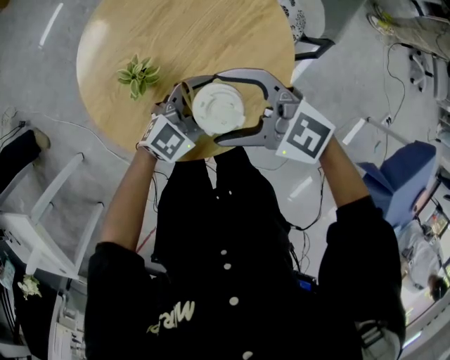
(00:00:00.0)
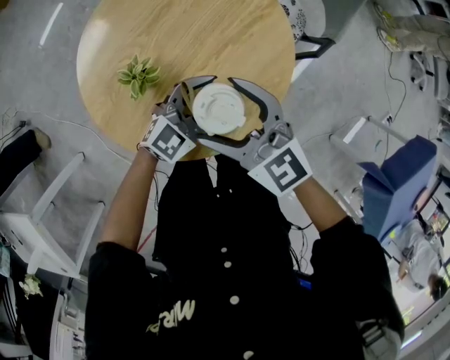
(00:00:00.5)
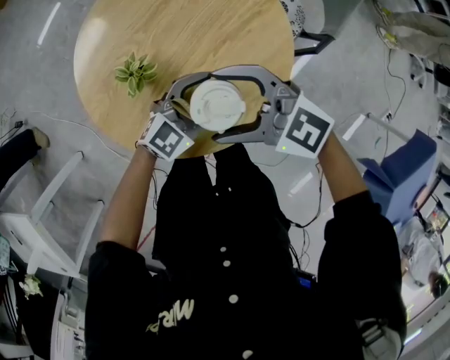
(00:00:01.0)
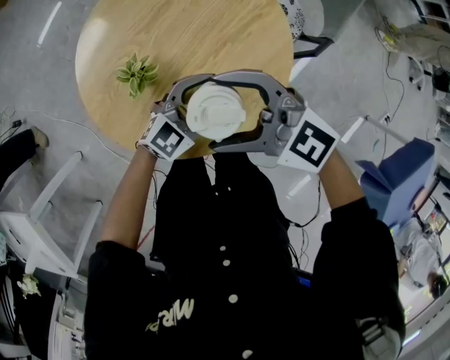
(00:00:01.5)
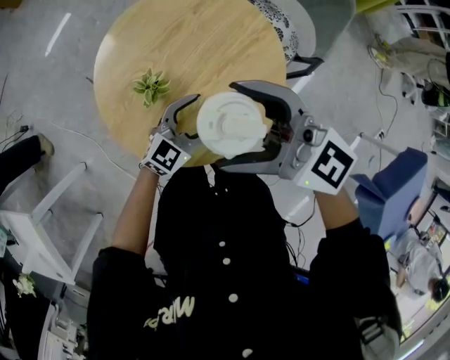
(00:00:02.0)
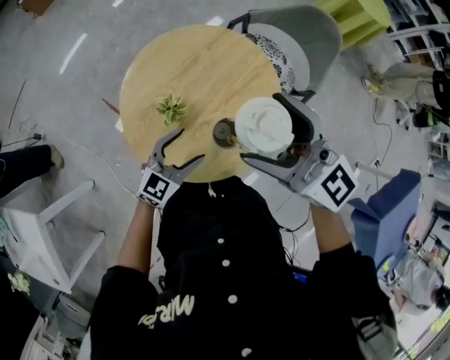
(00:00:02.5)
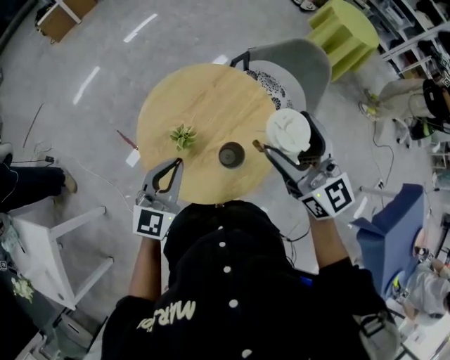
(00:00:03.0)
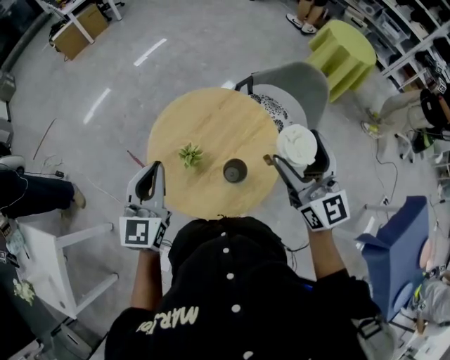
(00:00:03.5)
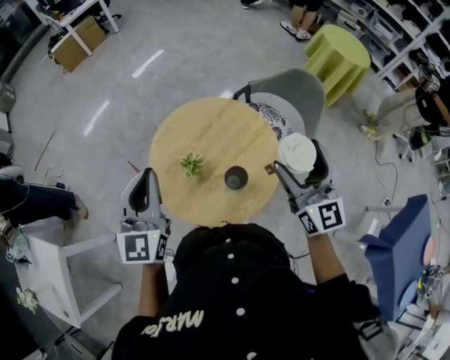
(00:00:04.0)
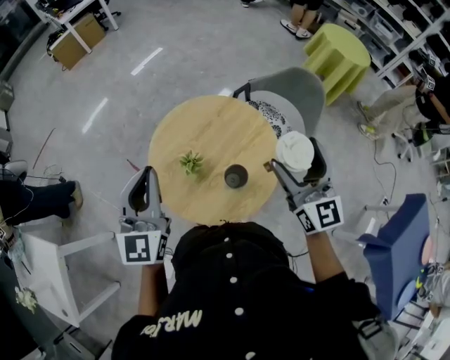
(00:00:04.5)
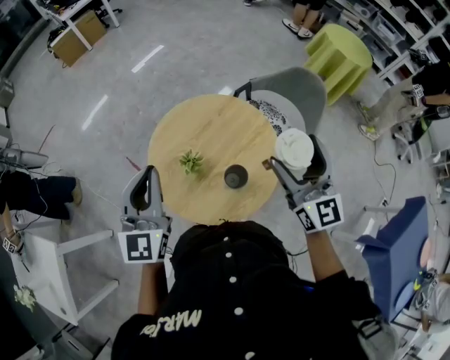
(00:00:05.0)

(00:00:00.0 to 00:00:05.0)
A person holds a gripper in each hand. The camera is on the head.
00:00:00.0 - 00:00:02.5: The left gripper ends up some 15 cm from where it was, and rotates some 20 degrees; the right gripper travels upward by roughly 20 cm, and changes its angle by roughly 30 degrees.
00:00:02.5 - 00:00:05.0: The left gripper shifts approximately 30 cm upward and to the left, rotates approximately 40 degrees, and closes up. Meanwhile the right gripper travels to the right by some 10 cm, and swivels some 30 degrees.

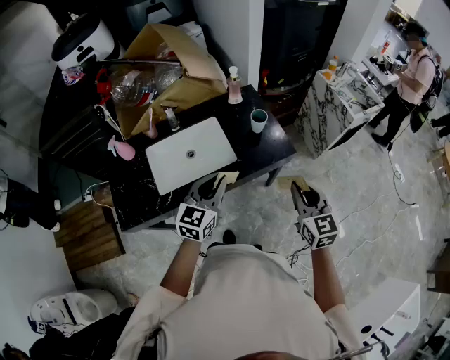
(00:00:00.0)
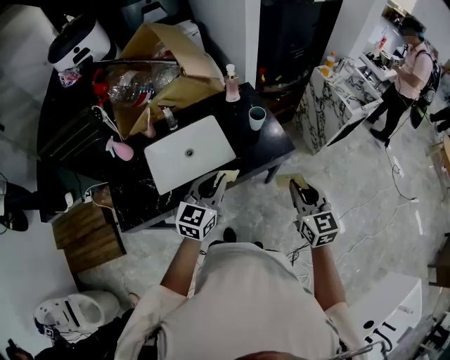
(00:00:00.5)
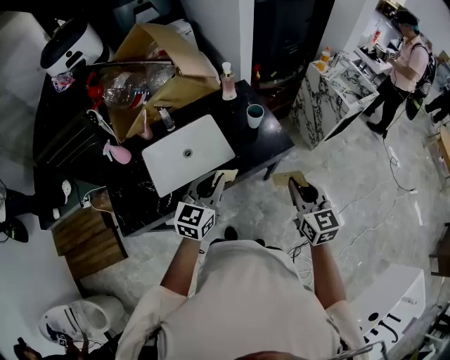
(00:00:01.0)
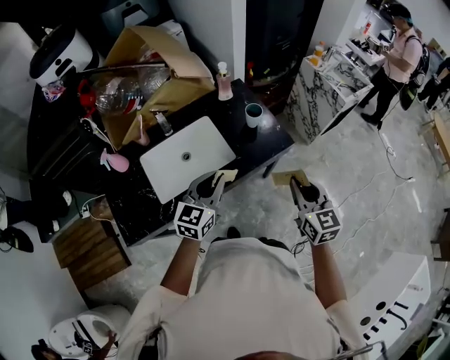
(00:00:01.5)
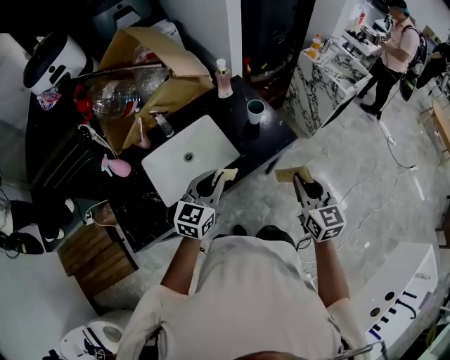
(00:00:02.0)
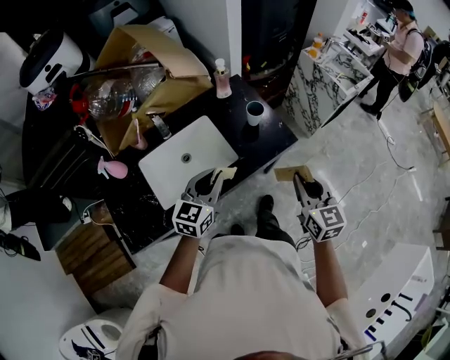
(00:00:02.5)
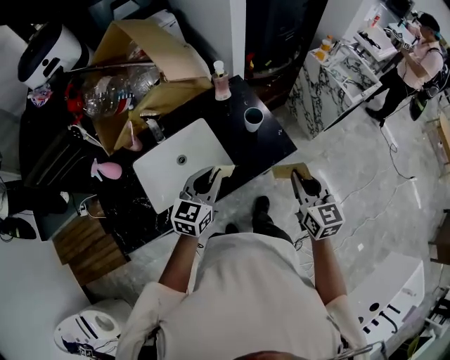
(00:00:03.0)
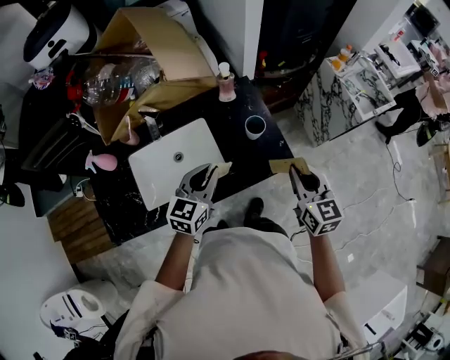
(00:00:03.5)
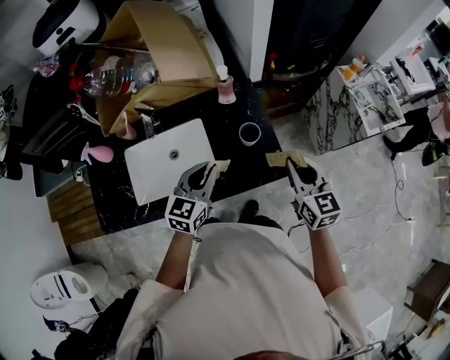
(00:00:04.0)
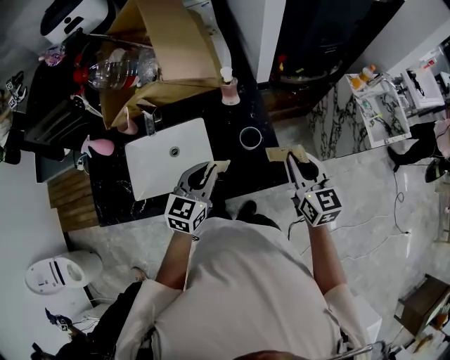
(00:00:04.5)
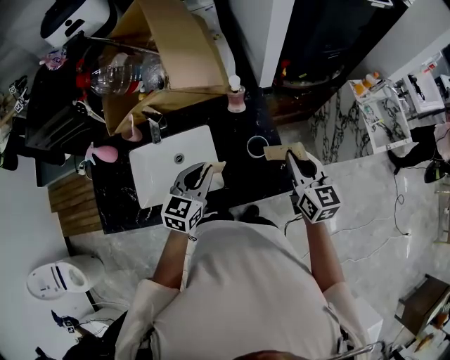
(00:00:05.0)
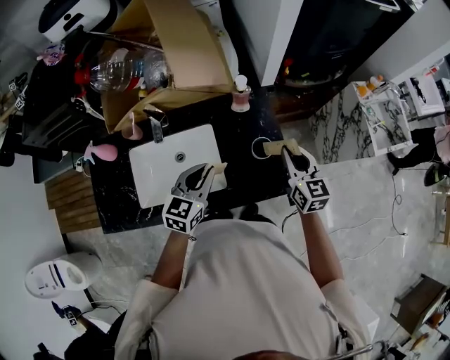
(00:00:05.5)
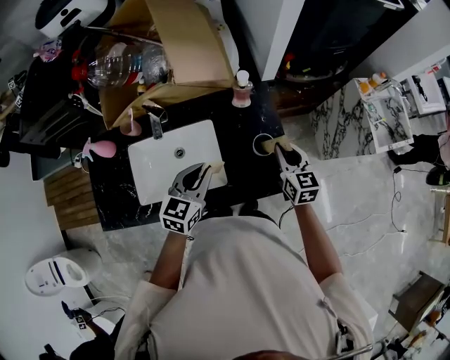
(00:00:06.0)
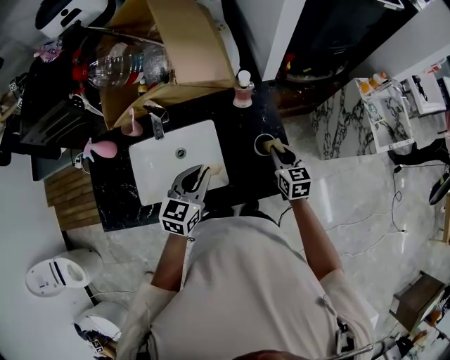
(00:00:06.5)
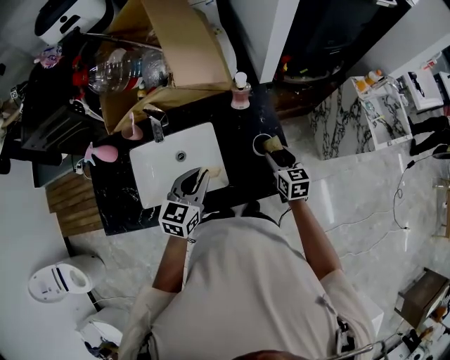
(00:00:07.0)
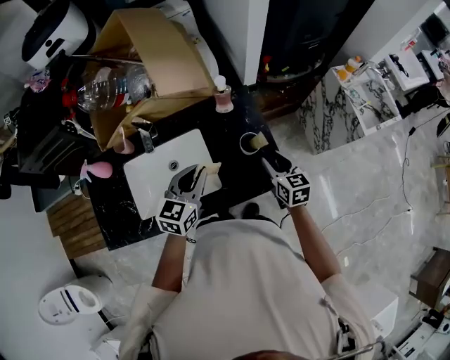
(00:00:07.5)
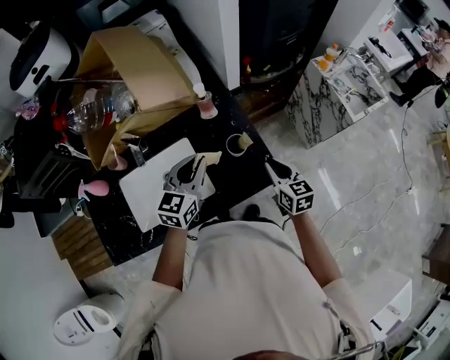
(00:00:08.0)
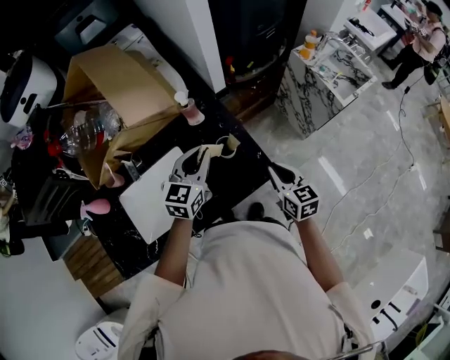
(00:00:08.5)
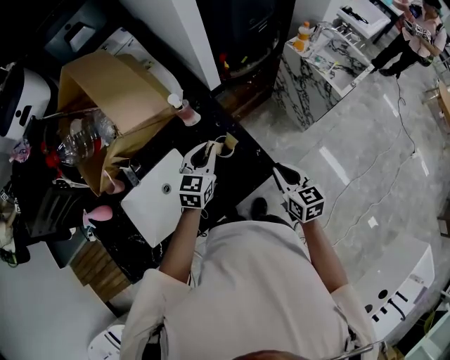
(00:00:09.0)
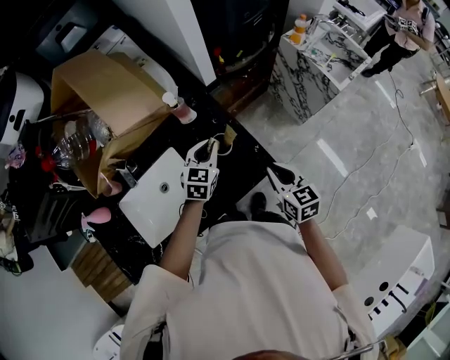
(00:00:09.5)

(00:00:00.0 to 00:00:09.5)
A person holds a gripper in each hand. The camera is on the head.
00:00:00.0 - 00:00:02.0: The left gripper is displaced to the left by roughly 5 cm.
00:00:02.0 - 00:00:04.0: The right gripper is displaced forward by some 25 cm. The left gripper heads forward and to the right, covering roughly 20 cm.
00:00:04.0 - 00:00:05.5: The left gripper shifts roughly 5 cm forward, while the right gripper is displaced forward by approximately 10 cm.
00:00:05.5 - 00:00:07.5: The right gripper travels downward by about 10 cm, and opens its fingers.
00:00:07.5 - 00:00:09.5: The right gripper travels to the right and backward by some 10 cm, and closes up. The left gripper shifts some 20 cm to the right, forward and downward.

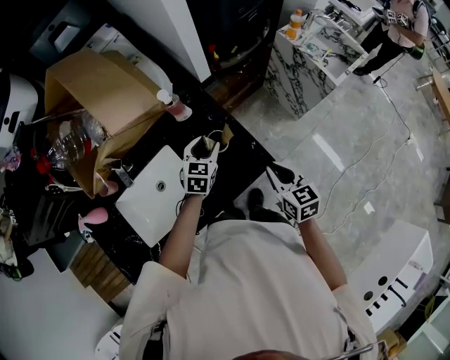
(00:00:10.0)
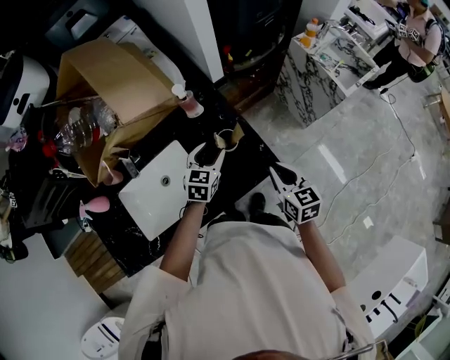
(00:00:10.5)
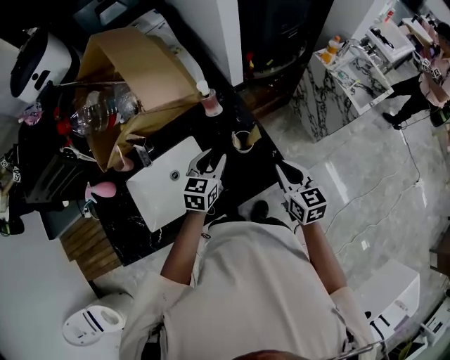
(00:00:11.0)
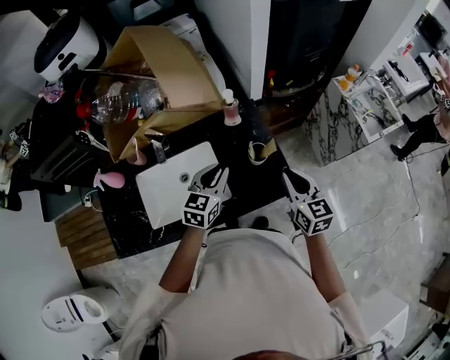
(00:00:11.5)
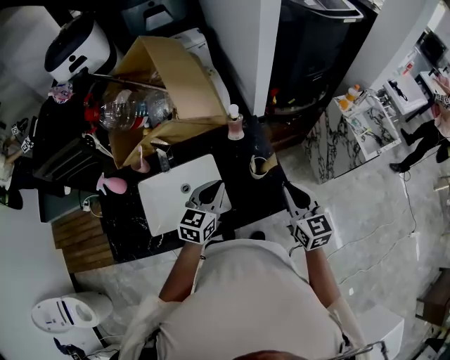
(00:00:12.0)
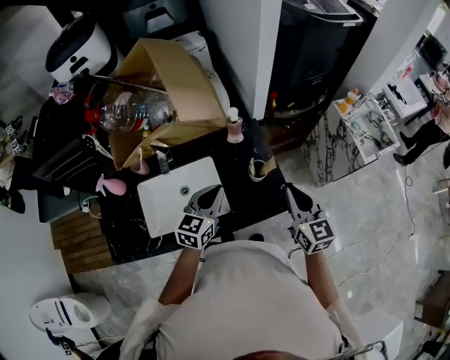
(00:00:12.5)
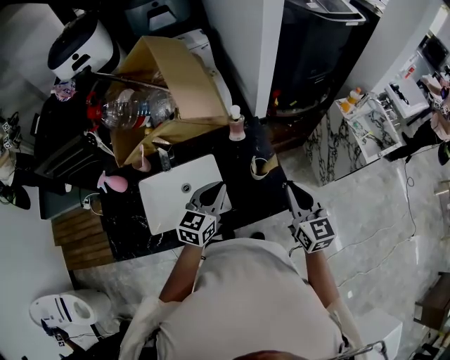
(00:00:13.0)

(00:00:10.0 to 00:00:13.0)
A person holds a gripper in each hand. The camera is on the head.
00:00:10.0 - 00:00:11.5: The left gripper heads upward, to the left and backward, covering about 20 cm, and closes up, while the right gripper goes approximately 10 cm upward and to the left.
00:00:11.5 - 00:00:13.0: The right gripper moves upward, roughly 5 cm.

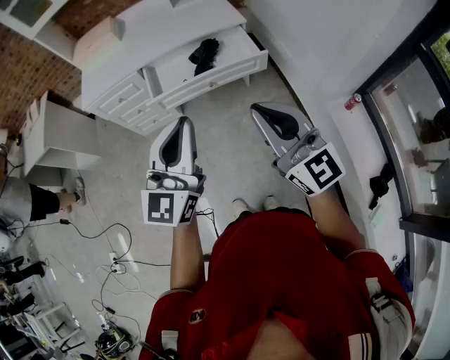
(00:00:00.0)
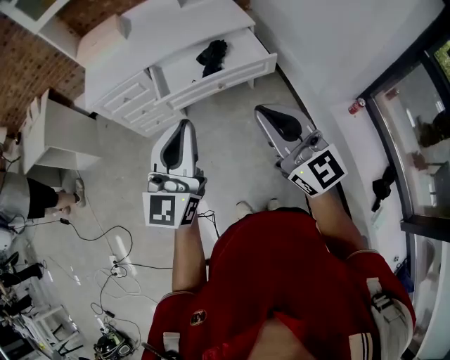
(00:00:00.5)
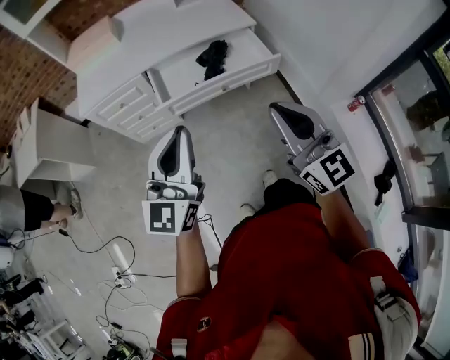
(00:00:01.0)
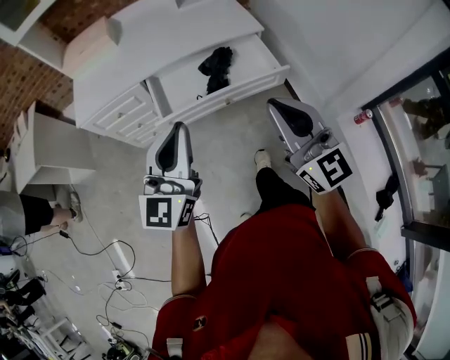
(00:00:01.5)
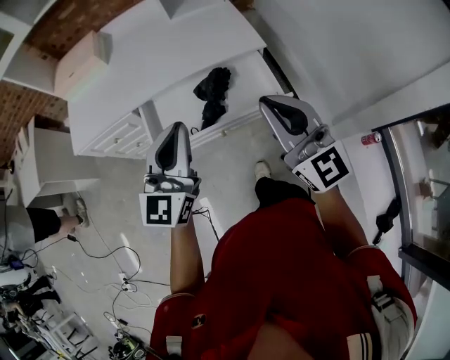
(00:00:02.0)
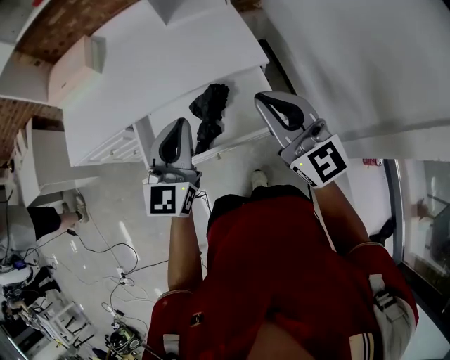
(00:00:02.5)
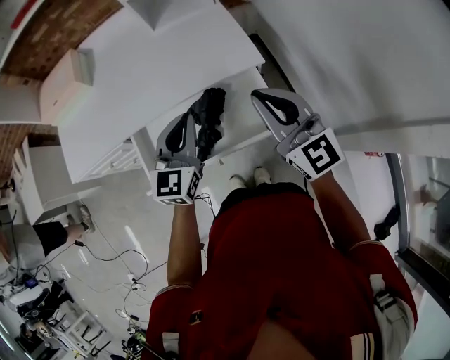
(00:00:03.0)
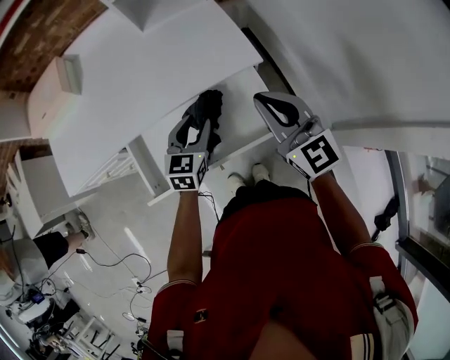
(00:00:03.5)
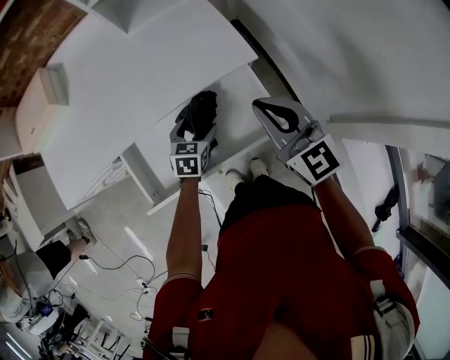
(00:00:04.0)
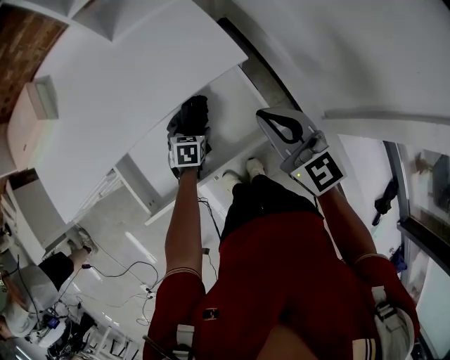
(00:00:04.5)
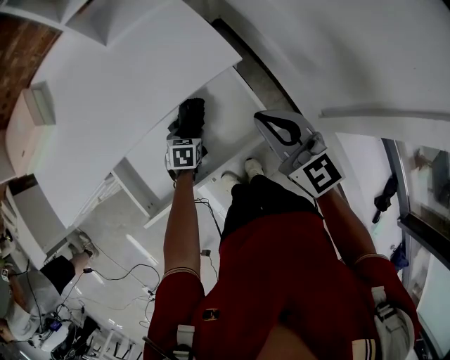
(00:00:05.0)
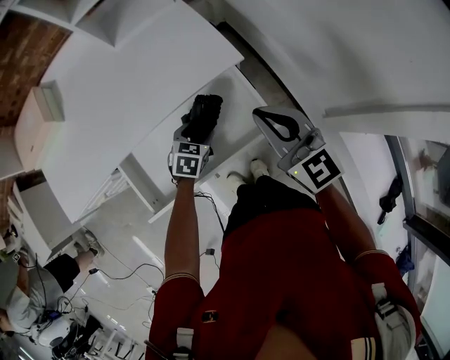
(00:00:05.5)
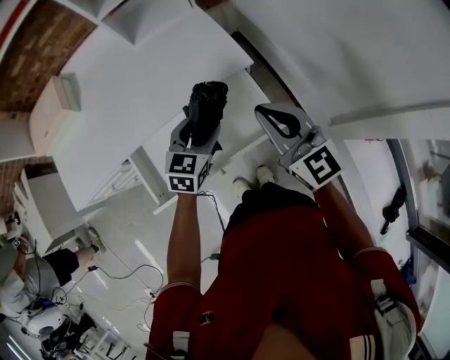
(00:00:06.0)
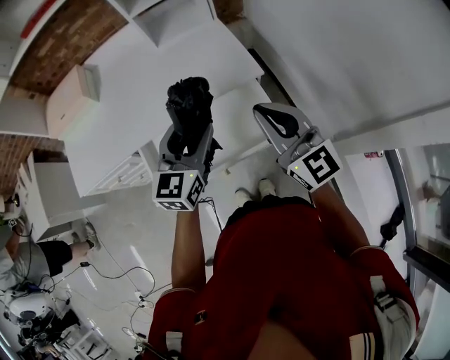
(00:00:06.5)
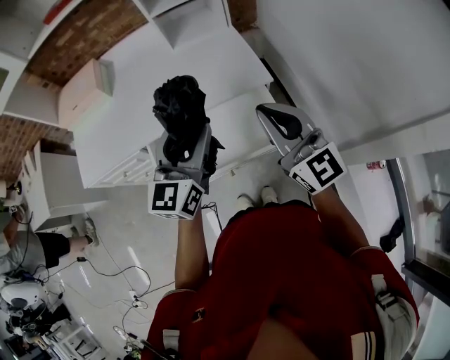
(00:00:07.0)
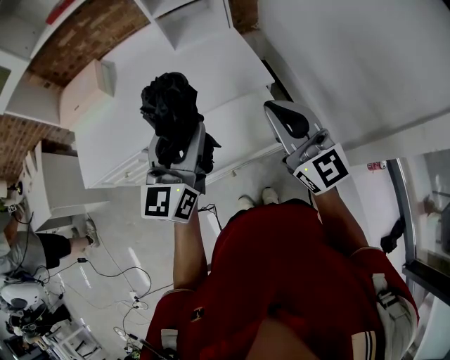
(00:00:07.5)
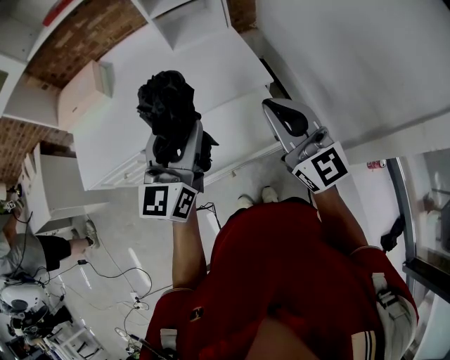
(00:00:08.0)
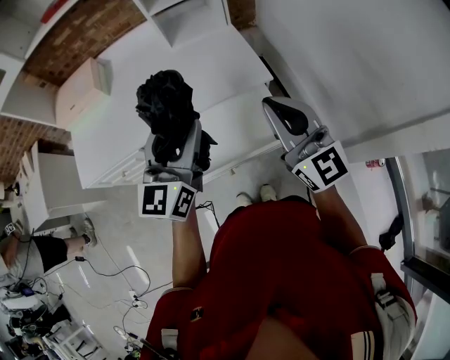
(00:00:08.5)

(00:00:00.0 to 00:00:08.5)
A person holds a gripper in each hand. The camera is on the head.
00:00:00.0 - 00:00:02.0: The grippers both shift forward by approximately 35 cm.
00:00:02.0 - 00:00:04.0: The left gripper moves downward and forward, about 40 cm, tilts its fingers approximately 50 degrees downward, and opens its fingers. The right gripper travels forward and downward by approximately 25 cm.
00:00:04.0 - 00:00:06.5: The right gripper moves upward and backward, approximately 10 cm. Meanwhile the left gripper shifts roughly 25 cm upward, and tilts its fingers about 40 degrees upward.
00:00:06.5 - 00:00:08.5: The left gripper moves upward, about 10 cm.
